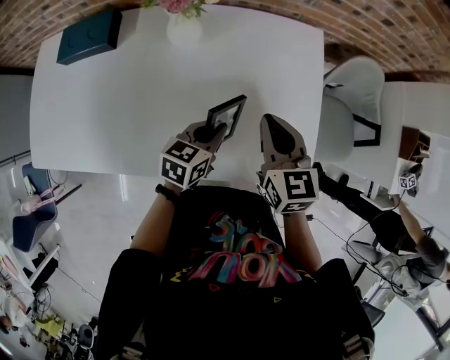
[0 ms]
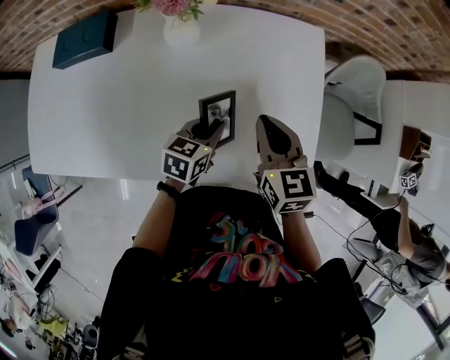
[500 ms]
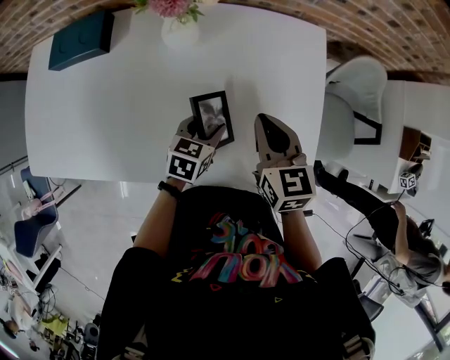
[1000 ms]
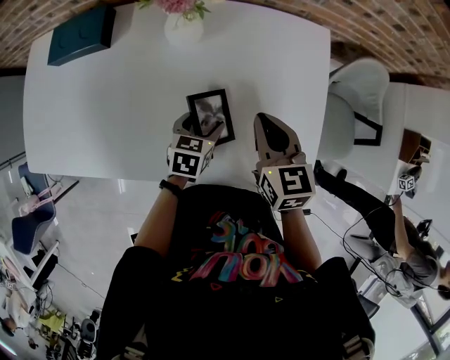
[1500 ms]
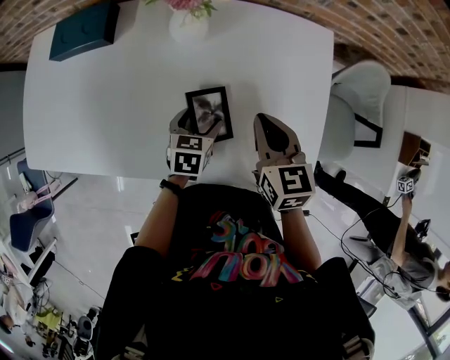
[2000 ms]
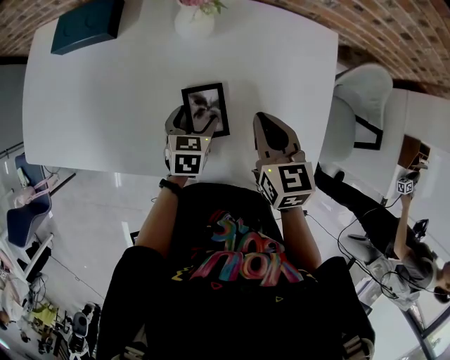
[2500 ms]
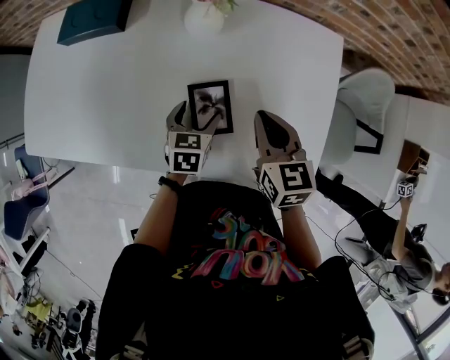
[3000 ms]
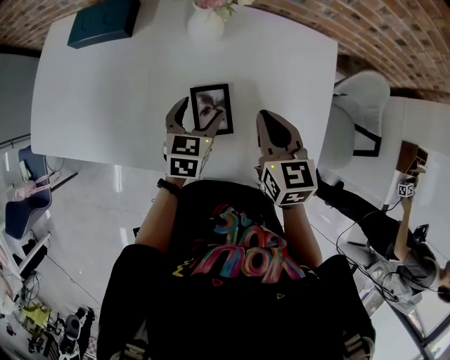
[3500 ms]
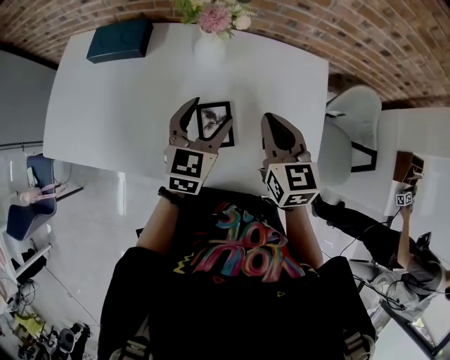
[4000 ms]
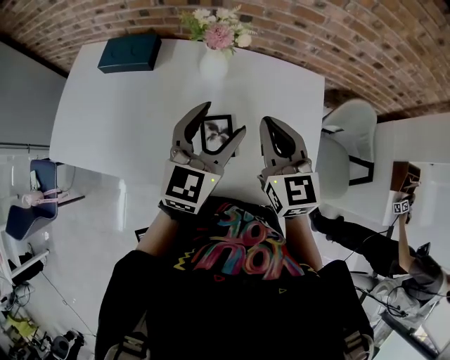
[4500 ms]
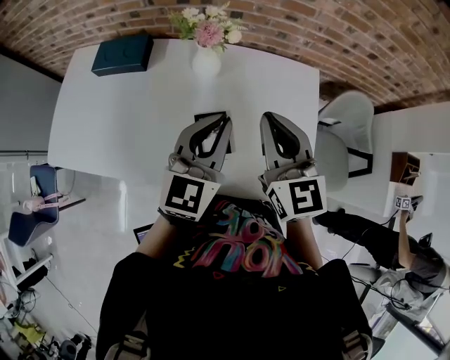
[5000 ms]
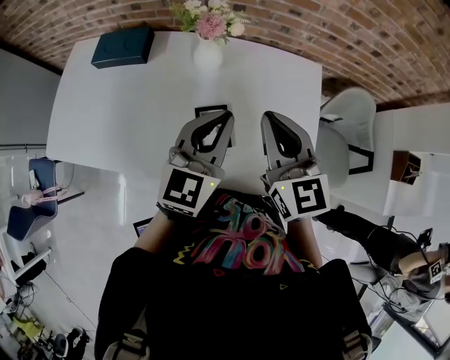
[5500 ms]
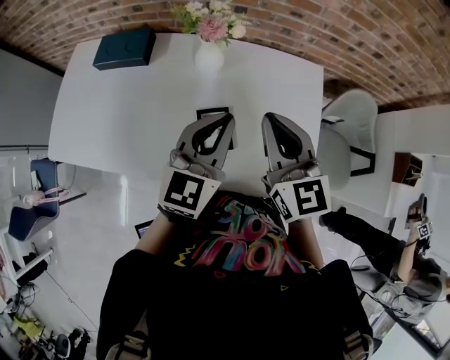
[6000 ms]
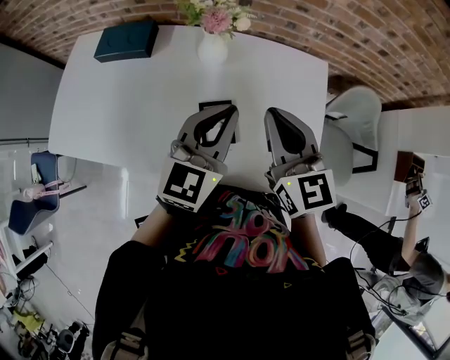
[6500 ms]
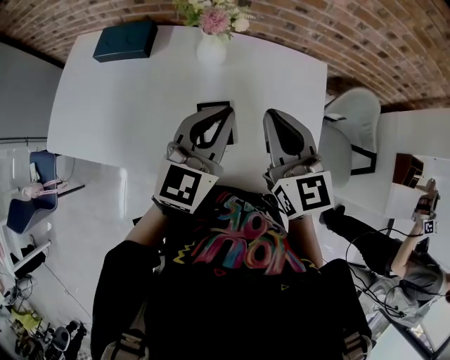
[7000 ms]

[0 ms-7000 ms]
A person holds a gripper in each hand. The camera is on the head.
0 ms to 2000 ms: The left gripper goes about 10 cm downward and to the left, turns by about 20 degrees, and opens. The right gripper changes place by roughly 5 cm.
2000 ms to 3500 ms: The left gripper is displaced upward by some 10 cm.
3500 ms to 5000 ms: Both grippers travel together upward, roughly 20 cm. The left gripper points its fingers about 30 degrees further upward, and closes its fingers. The right gripper changes its angle by some 20 degrees.
5000 ms to 7000 ms: There are only small adjustments of the grippers.

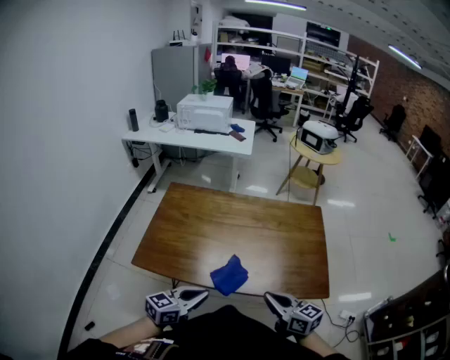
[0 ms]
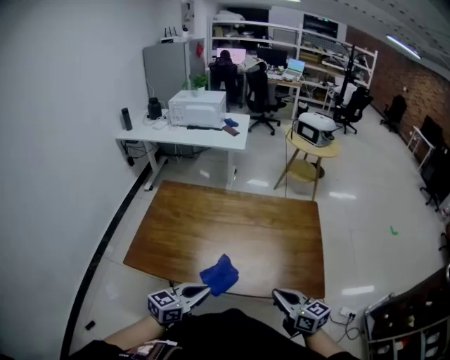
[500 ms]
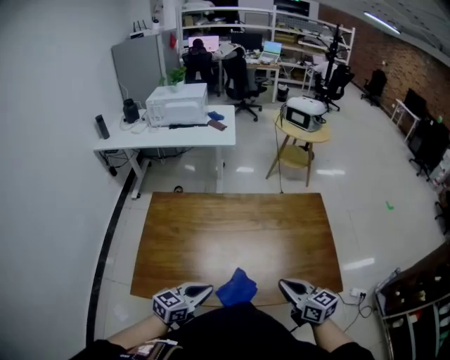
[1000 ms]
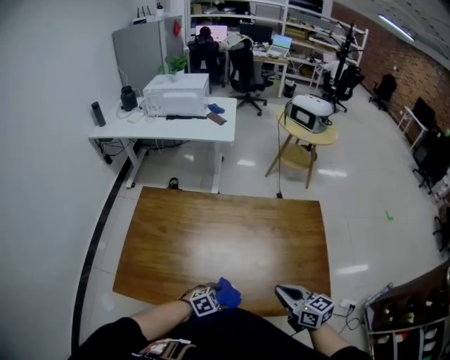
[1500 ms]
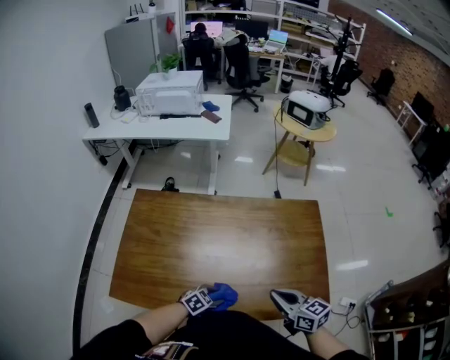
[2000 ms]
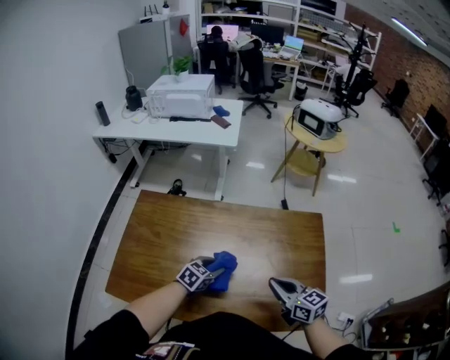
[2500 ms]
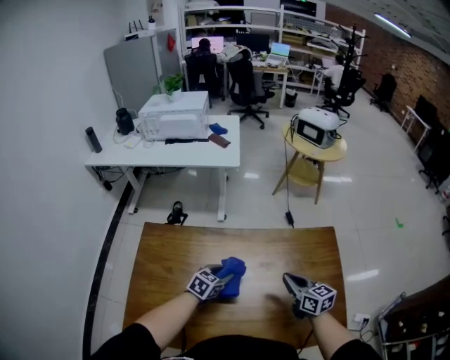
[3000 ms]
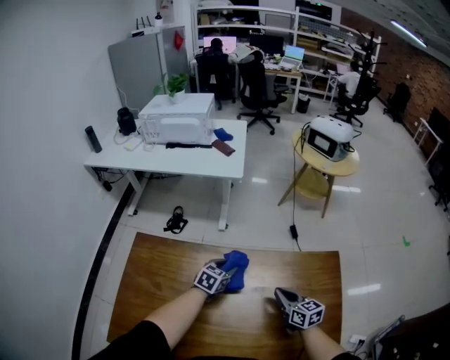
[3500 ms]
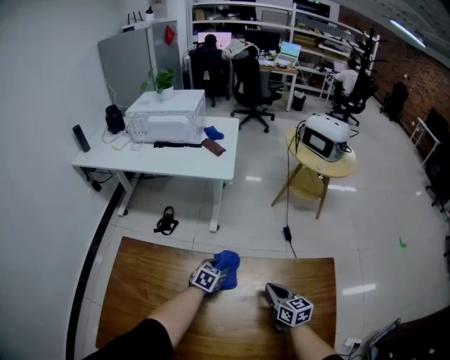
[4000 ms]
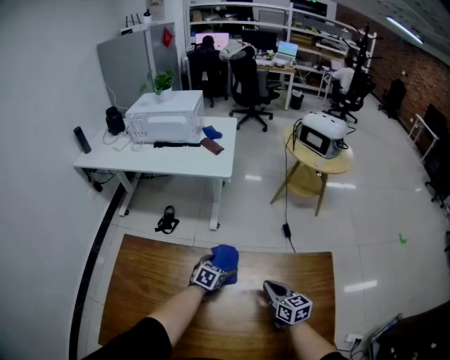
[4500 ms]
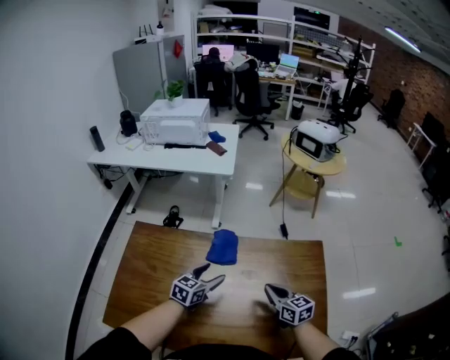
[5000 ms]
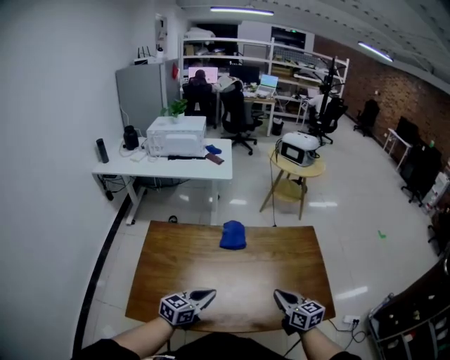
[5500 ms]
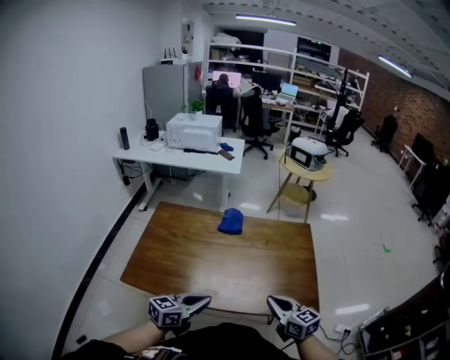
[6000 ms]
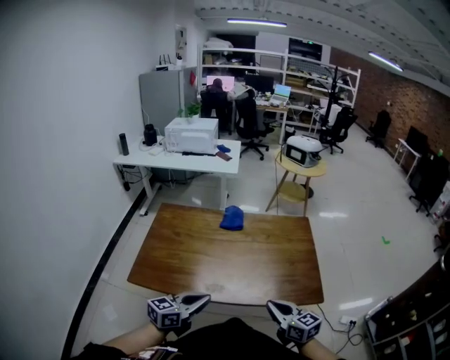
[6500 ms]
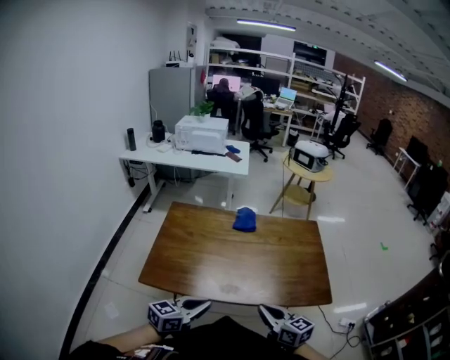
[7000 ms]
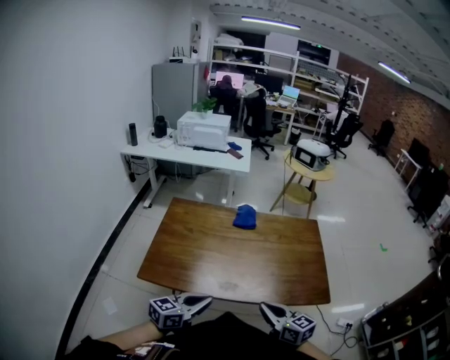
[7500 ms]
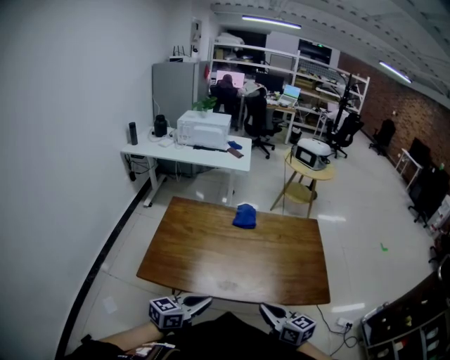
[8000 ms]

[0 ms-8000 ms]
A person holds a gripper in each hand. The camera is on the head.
0 ms to 2000 ms: The left gripper travels downward and forward by about 30 cm, angles its fingers downward, by about 40 degrees, and opens, then closes again. The right gripper heads forward, covering approximately 20 cm.
2000 ms to 4000 ms: The grippers both shift forward by roughly 40 cm. The left gripper changes its angle by roughly 30 degrees.
4000 ms to 6000 ms: The two grippers travel together, backward, approximately 50 cm. The left gripper shifts some 25 cm upward, tips its fingers upward by about 30 degrees, and opens and closes again.
6000 ms to 8000 ms: The grippers both shift to the left and backward by approximately 10 cm.

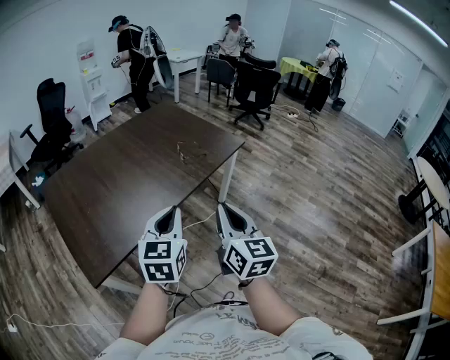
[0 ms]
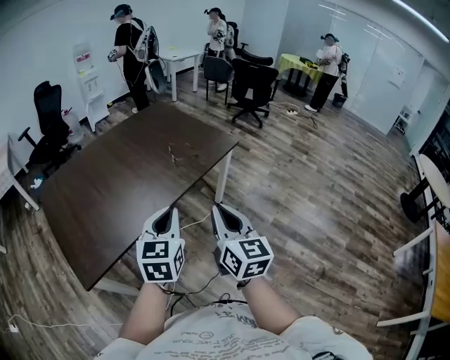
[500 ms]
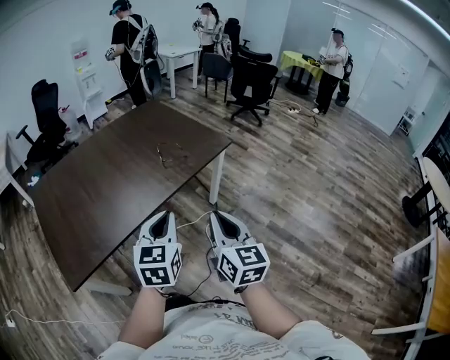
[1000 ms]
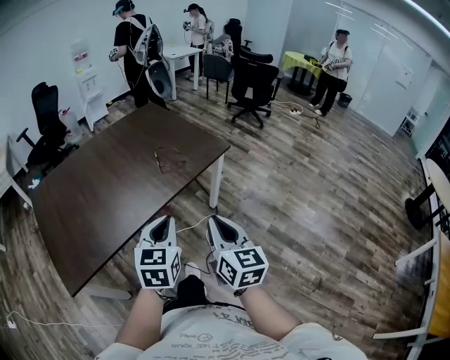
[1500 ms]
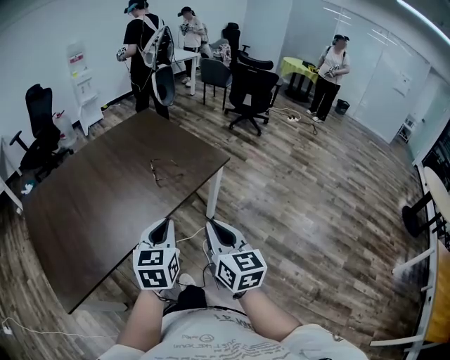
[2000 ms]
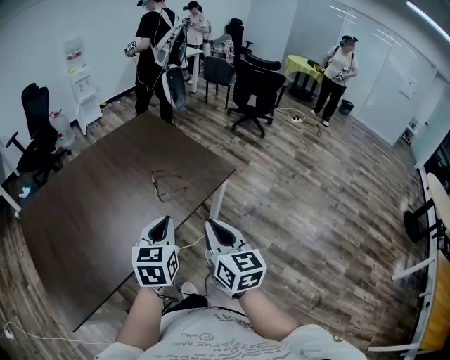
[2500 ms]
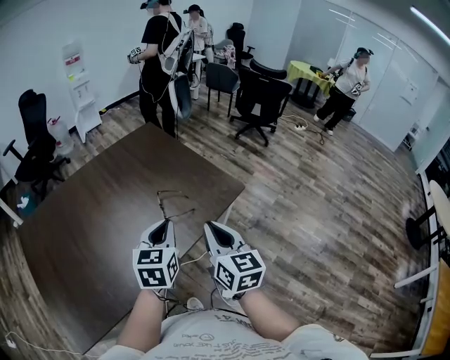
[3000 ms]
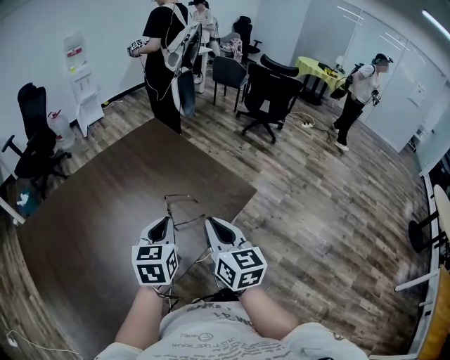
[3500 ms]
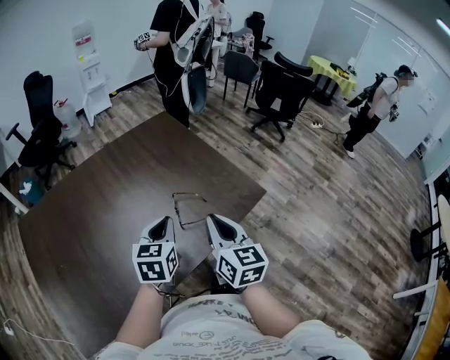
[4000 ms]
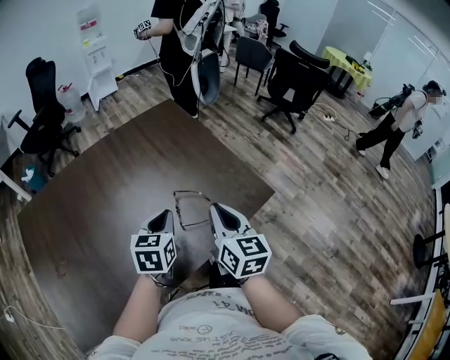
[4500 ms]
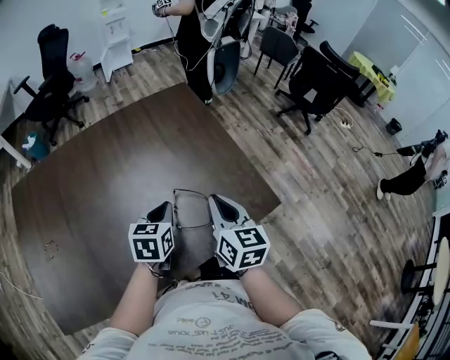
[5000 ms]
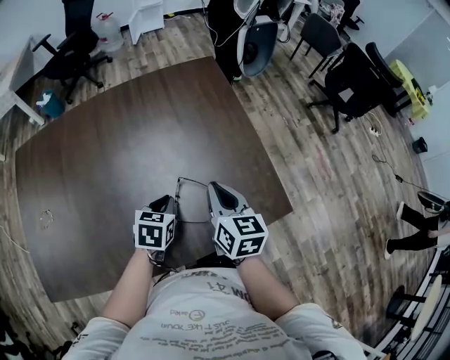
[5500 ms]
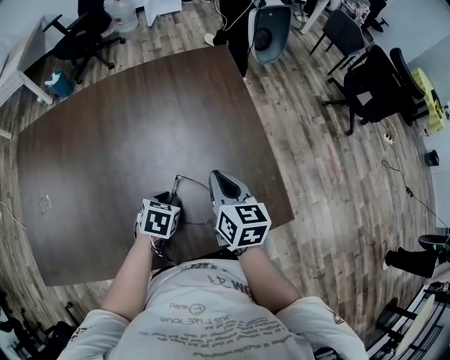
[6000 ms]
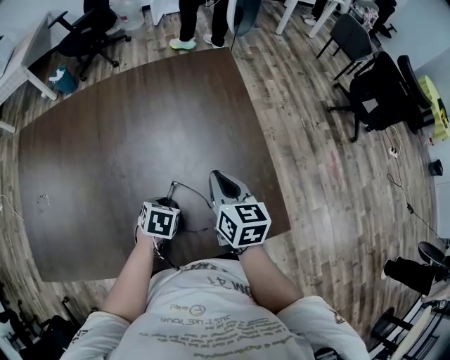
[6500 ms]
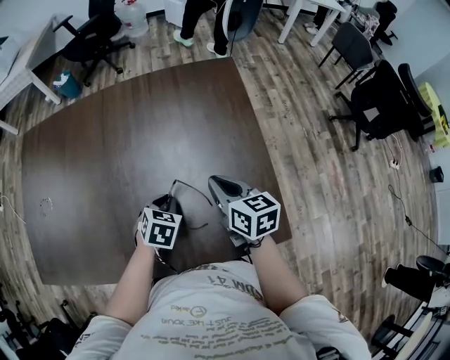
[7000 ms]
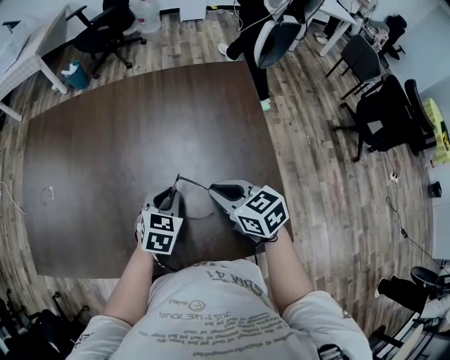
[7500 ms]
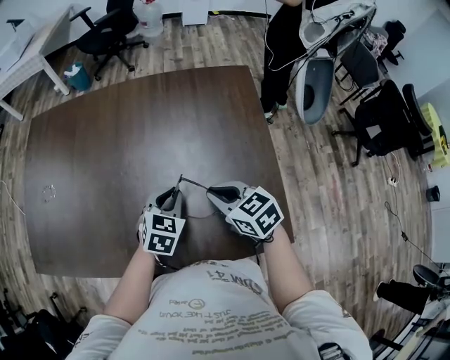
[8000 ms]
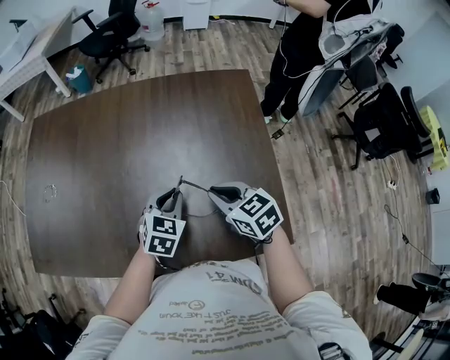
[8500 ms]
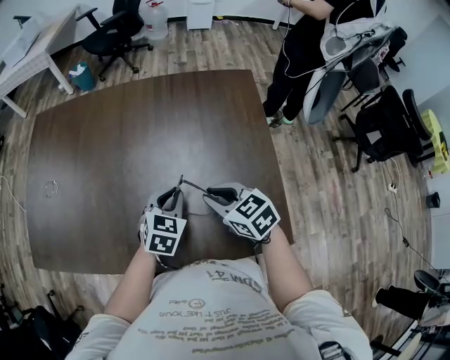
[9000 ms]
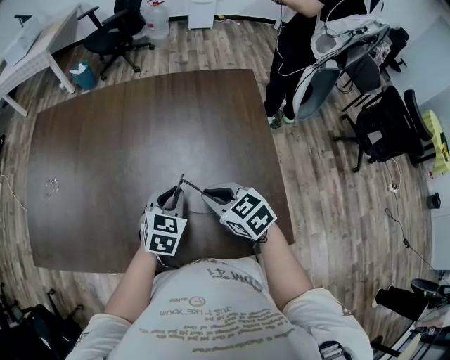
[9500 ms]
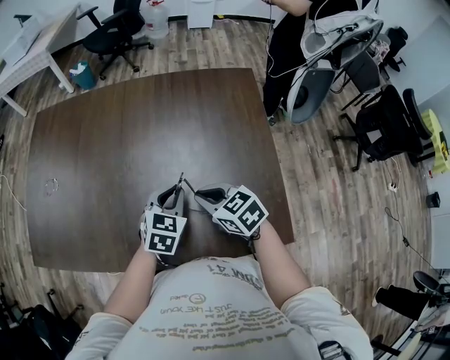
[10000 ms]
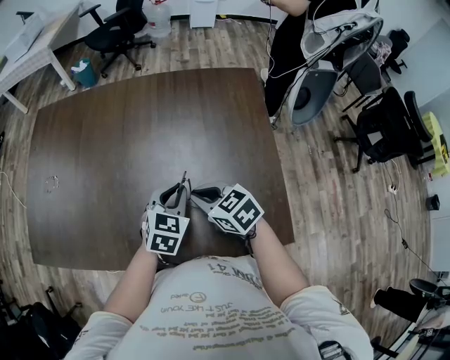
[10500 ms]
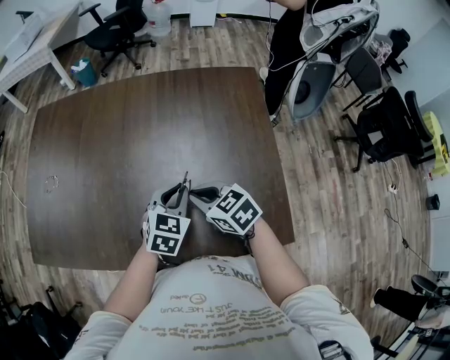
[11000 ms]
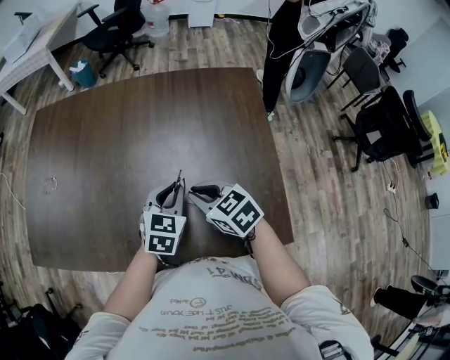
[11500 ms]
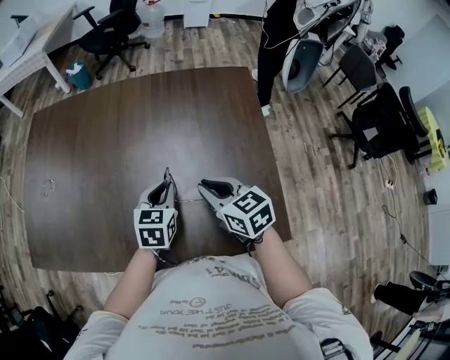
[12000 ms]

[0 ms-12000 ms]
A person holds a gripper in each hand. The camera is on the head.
0 ms to 2000 ms: The left gripper travels forward and to the right by some 20 cm. The right gripper is displaced forward, to the right and downward by approximately 20 cm.
2000 ms to 4000 ms: The grippers both shift forward by some 30 cm.
4000 ms to 6000 ms: The left gripper heads downward and forward, covering some 25 cm, and tips its fingers downward by some 40 degrees. Meanwhile the right gripper is displaced forward and downward by about 30 cm, and turns by some 30 degrees.
6000 ms to 8000 ms: The right gripper moves some 5 cm, and rotates approximately 50 degrees, while the left gripper travels upward by approximately 5 cm, and changes its angle by some 20 degrees.
8000 ms to 10000 ms: The grippers stay close to where they were, moving slightly.
10000 ms to 12000 ms: There are only small adjustments of the grippers.
